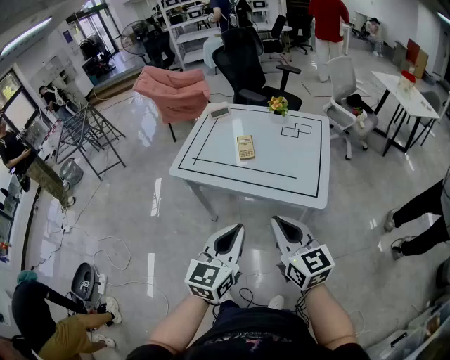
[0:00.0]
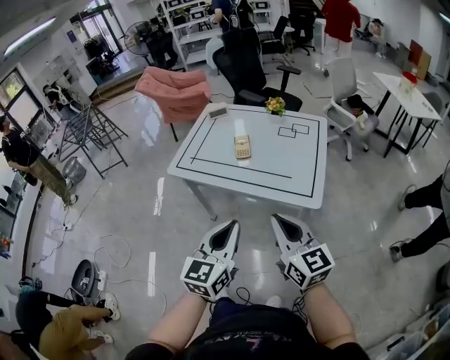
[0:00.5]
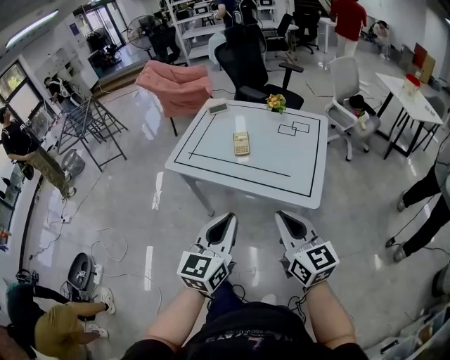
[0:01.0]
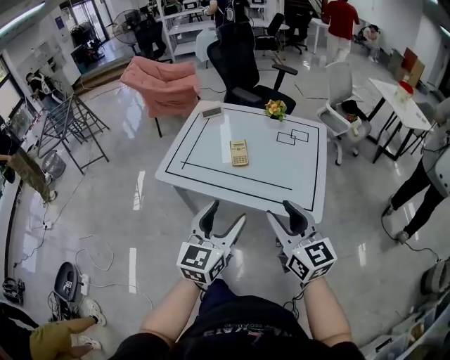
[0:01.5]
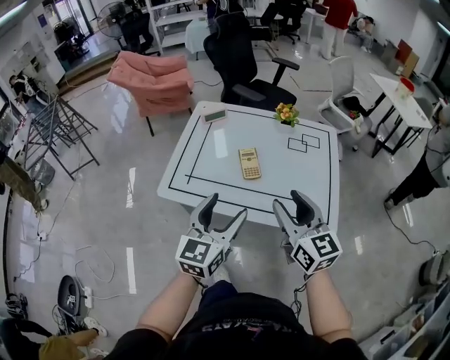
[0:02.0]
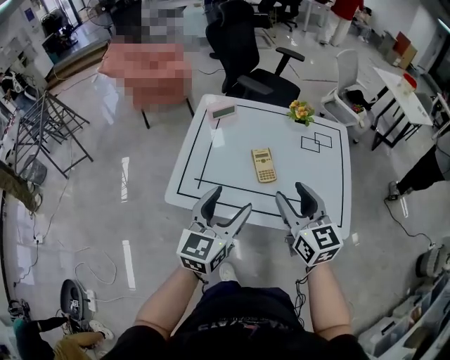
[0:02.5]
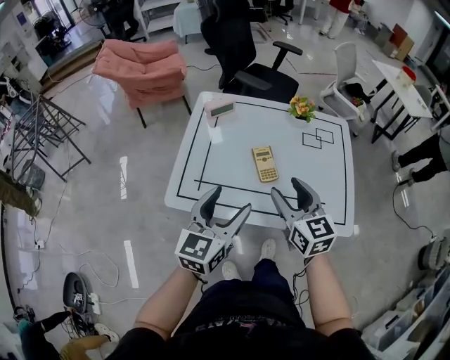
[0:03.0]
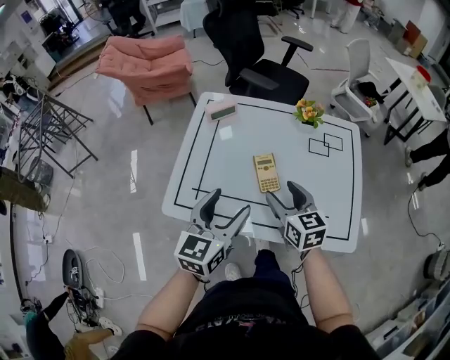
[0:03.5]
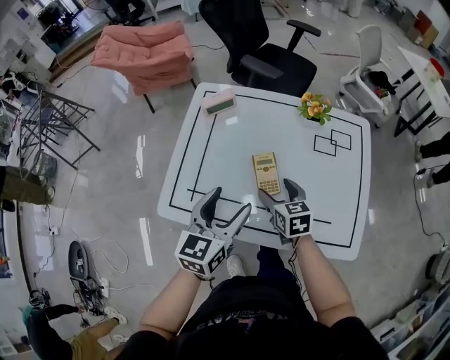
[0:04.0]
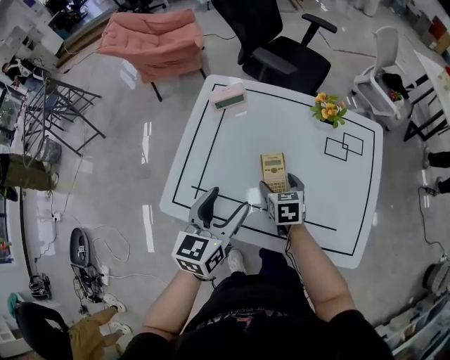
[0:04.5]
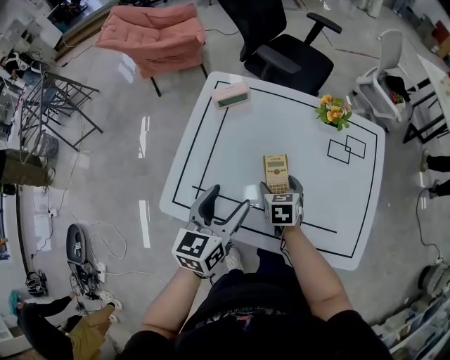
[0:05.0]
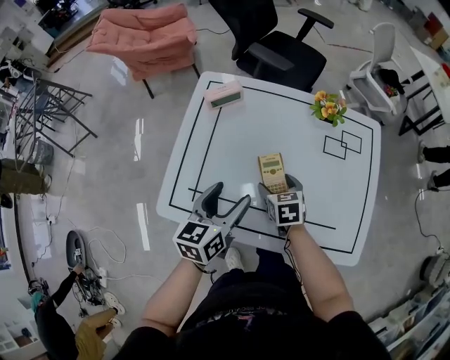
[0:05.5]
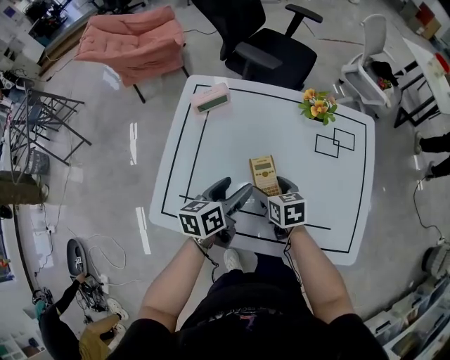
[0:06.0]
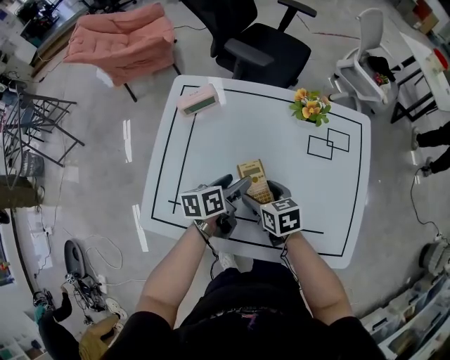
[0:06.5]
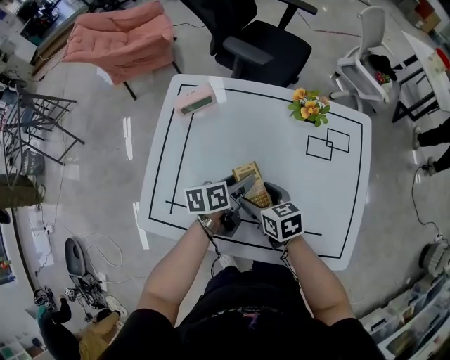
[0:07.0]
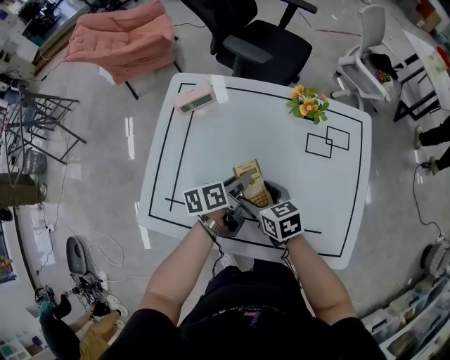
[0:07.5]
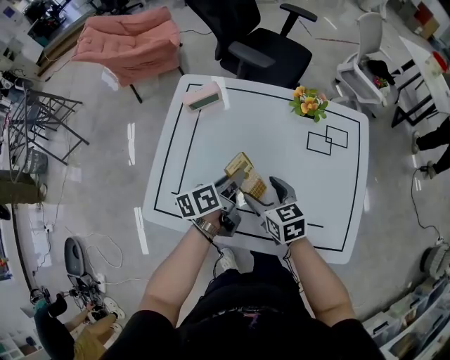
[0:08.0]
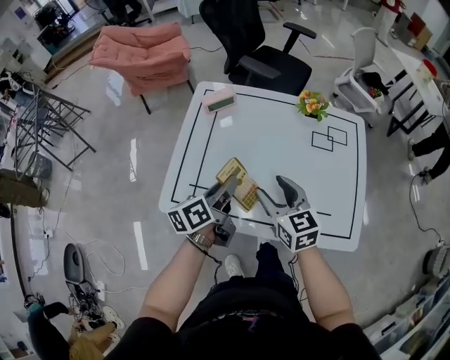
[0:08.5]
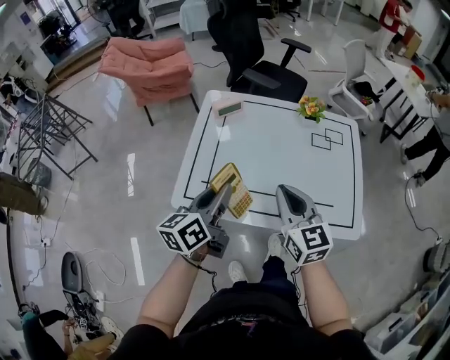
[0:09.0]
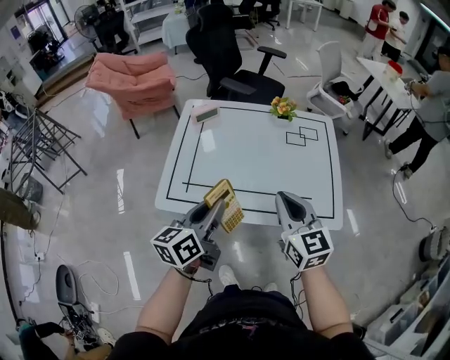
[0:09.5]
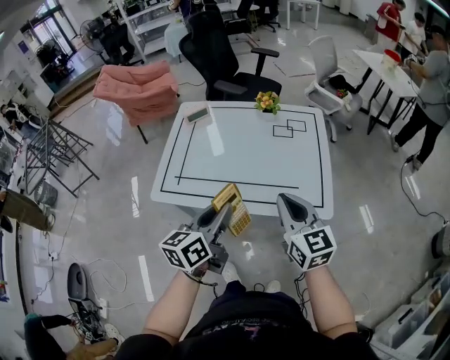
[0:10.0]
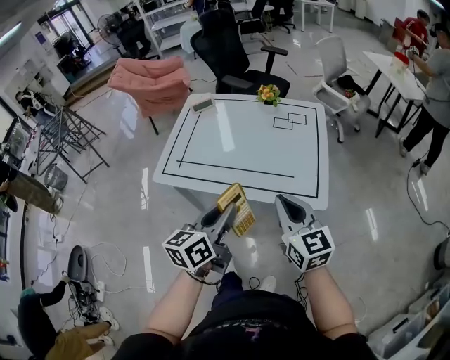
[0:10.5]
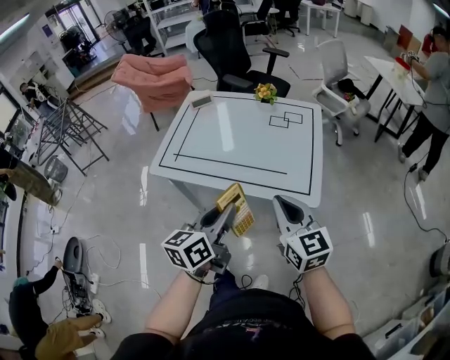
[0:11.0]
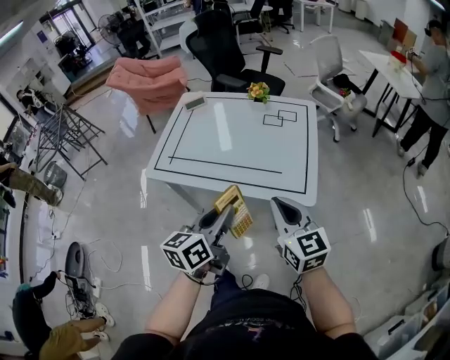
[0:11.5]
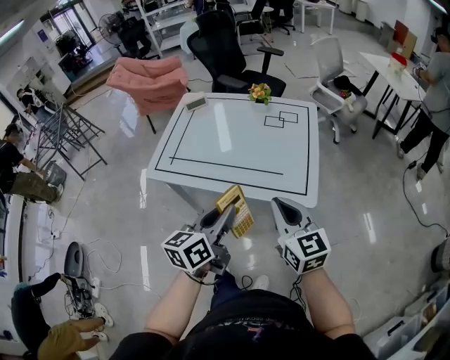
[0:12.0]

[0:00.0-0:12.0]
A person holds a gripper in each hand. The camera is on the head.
0:00.0 to 0:02.0: The two grippers go some 25 cm forward. The right gripper opens its fingers, while the left gripper opens.
0:02.0 to 0:04.0: The right gripper goes about 30 cm downward and forward, tips its fingers downward by some 30 degrees, and opens its fingers; the left gripper heads forward and downward, covering about 20 cm.
0:04.0 to 0:06.0: The right gripper travels downward by roughly 5 cm, while the left gripper travels downward and forward by about 15 cm, and changes its angle by some 30 degrees.
0:06.0 to 0:08.0: The left gripper closes up.
0:08.0 to 0:10.0: The right gripper goes some 35 cm backward, upward and to the right, swivels some 30 degrees, and closes. Meanwhile the left gripper goes about 35 cm backward and upward, and swivels approximately 30 degrees.
0:10.0 to 0:12.0: Both grippers travel together backward and to the right, about 15 cm.

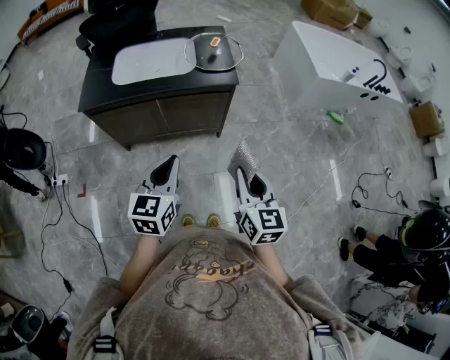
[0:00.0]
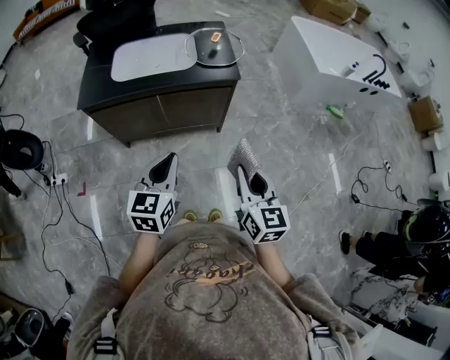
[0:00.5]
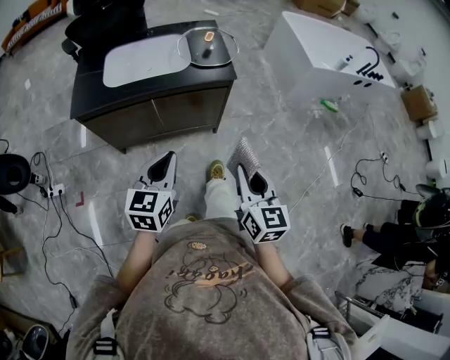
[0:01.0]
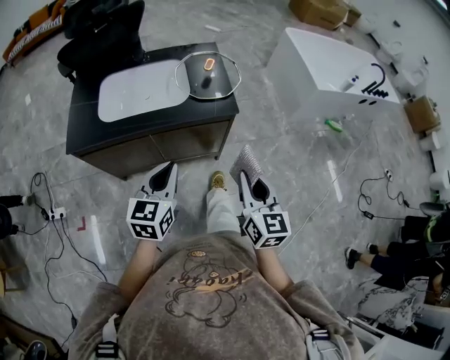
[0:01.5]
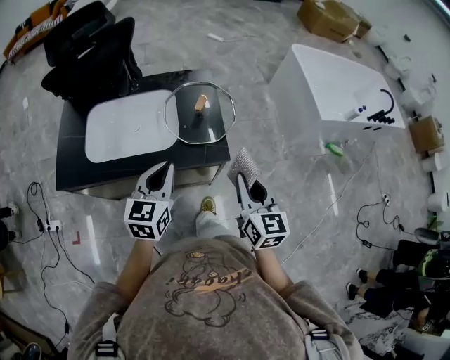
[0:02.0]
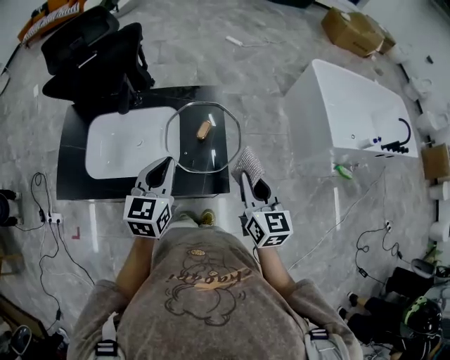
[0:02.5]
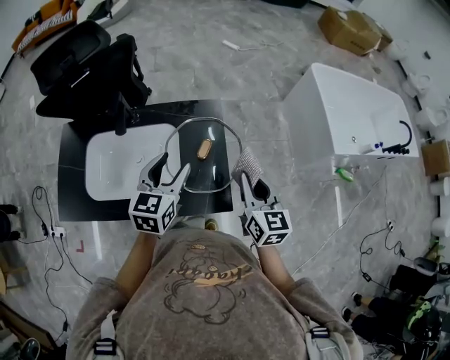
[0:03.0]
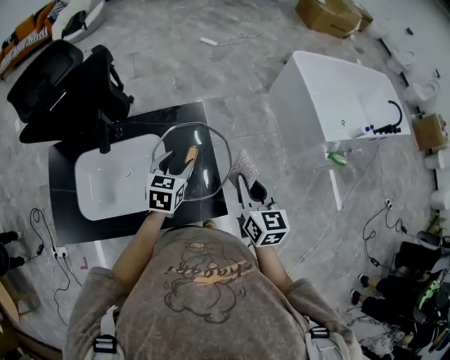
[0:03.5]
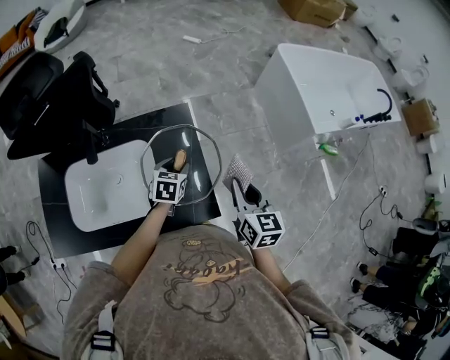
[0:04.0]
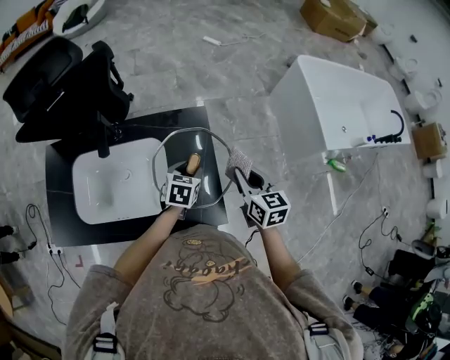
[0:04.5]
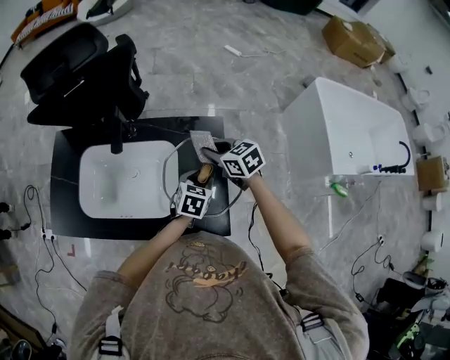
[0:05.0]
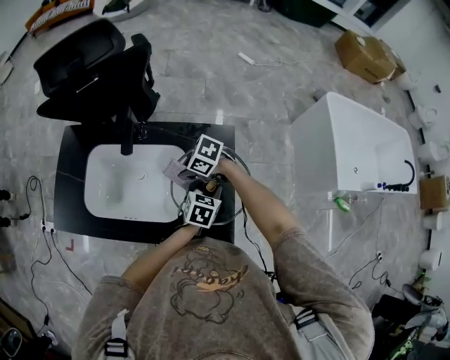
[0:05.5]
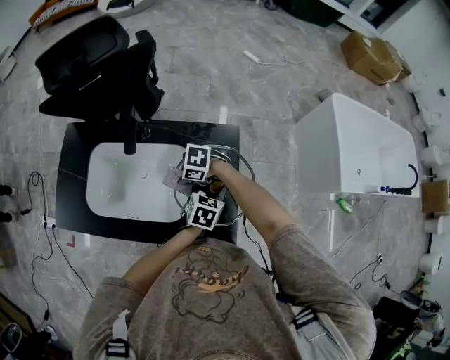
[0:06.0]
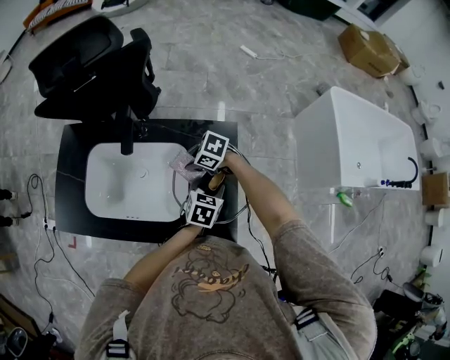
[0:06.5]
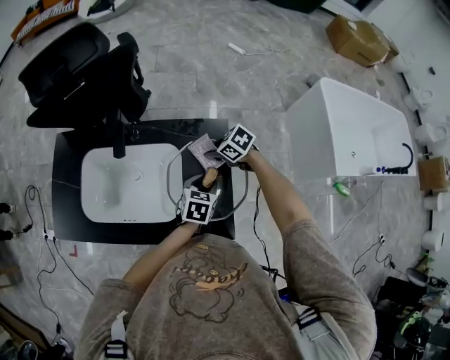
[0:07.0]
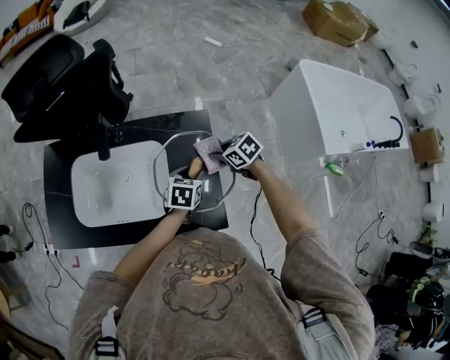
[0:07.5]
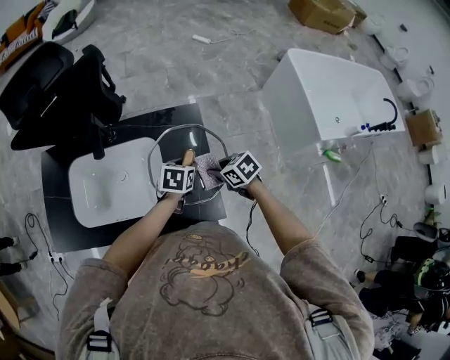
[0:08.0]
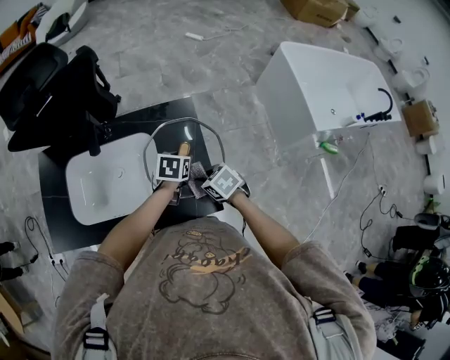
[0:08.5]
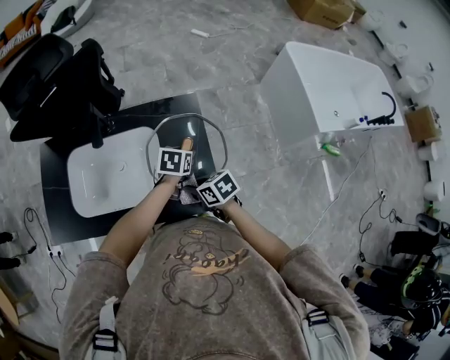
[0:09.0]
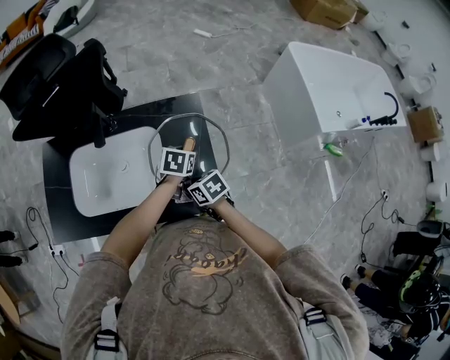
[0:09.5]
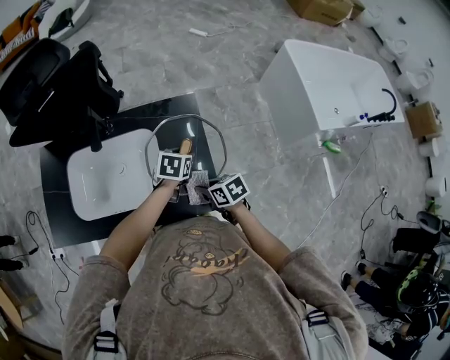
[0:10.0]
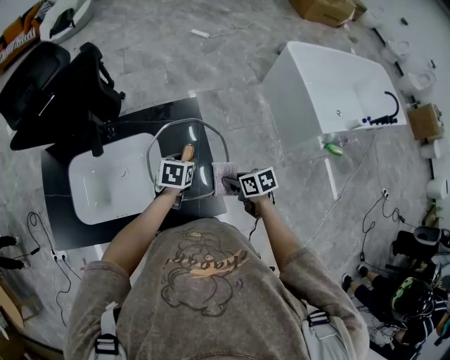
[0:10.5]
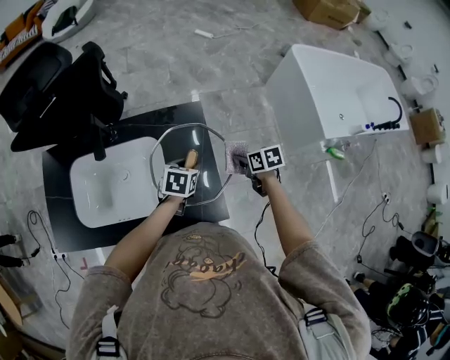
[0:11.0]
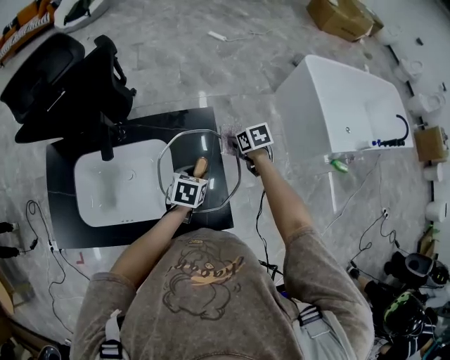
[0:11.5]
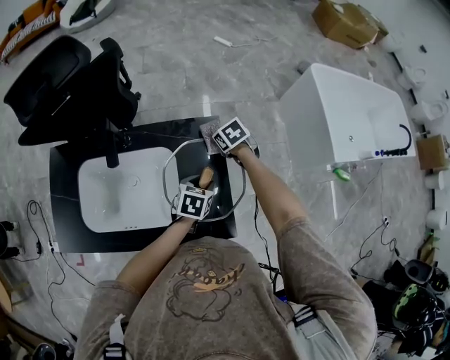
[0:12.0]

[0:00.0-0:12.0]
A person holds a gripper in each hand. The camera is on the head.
0:00.0 to 0:02.0: Both grippers move forward, about 35 cm.
0:02.0 to 0:04.0: The left gripper travels forward and downward by about 35 cm, rotates roughly 30 degrees, and opens. Meanwhile the right gripper goes some 20 cm forward.
0:04.0 to 0:06.0: The right gripper ends up about 35 cm from where it was, and points its fingers approximately 40 degrees further downward.
0:06.0 to 0:08.0: The right gripper moves some 20 cm, and rotates roughly 60 degrees.
0:08.0 to 0:10.0: The right gripper goes some 10 cm backward and to the left.
0:10.0 to 0:12.0: The right gripper travels forward by roughly 30 cm, and turns by about 30 degrees.

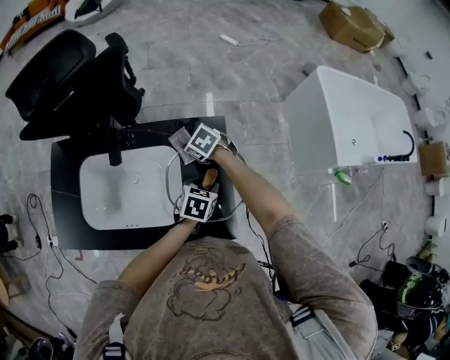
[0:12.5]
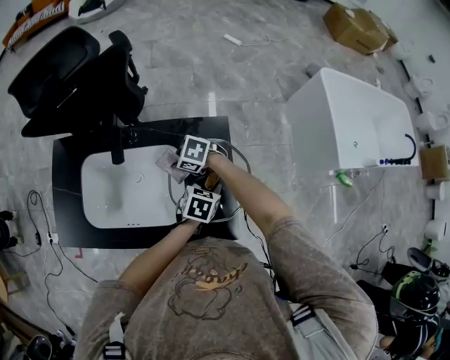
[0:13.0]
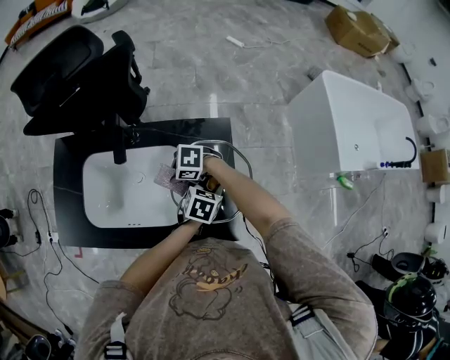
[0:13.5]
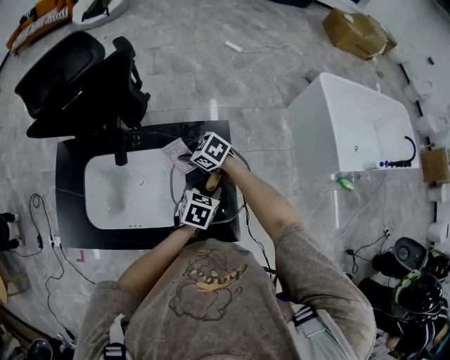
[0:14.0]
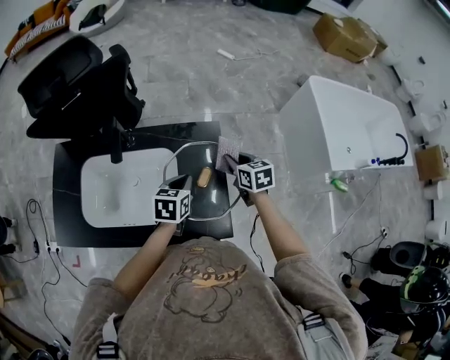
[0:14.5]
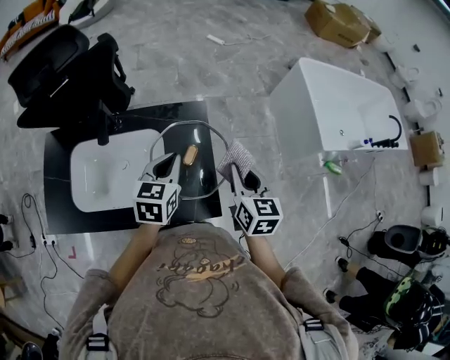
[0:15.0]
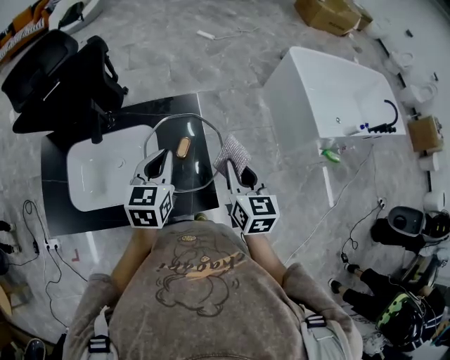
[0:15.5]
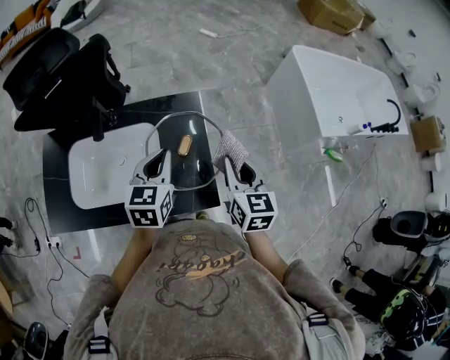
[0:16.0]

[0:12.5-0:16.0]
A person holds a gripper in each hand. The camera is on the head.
0:12.5 to 0:14.5: The right gripper ends up approximately 20 cm from where it was, and turns by approximately 50 degrees; the left gripper heads upward, covering about 5 cm, and closes its fingers.
0:14.5 to 0:16.0: The right gripper heads backward and upward, covering about 20 cm, and rotates about 30 degrees. The left gripper shifts about 10 cm upward, and swivels some 20 degrees.
